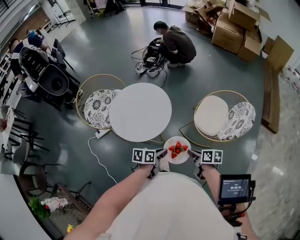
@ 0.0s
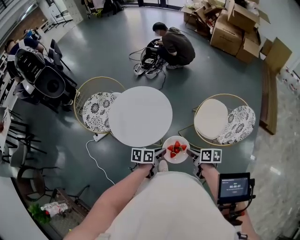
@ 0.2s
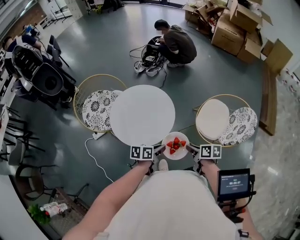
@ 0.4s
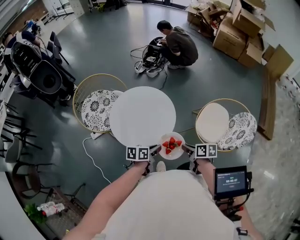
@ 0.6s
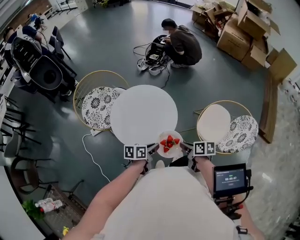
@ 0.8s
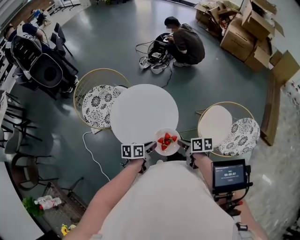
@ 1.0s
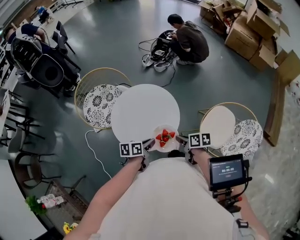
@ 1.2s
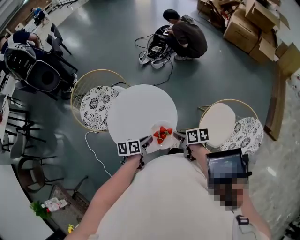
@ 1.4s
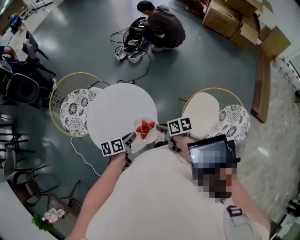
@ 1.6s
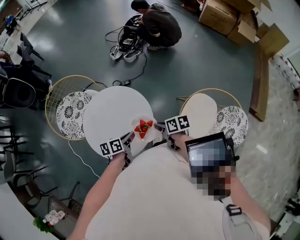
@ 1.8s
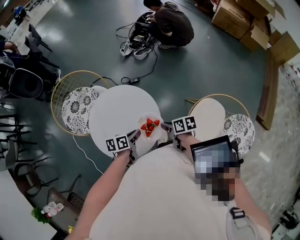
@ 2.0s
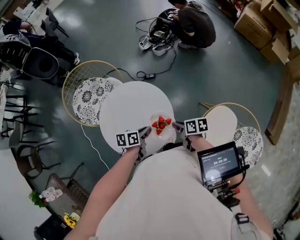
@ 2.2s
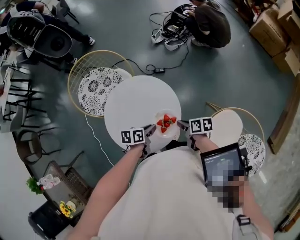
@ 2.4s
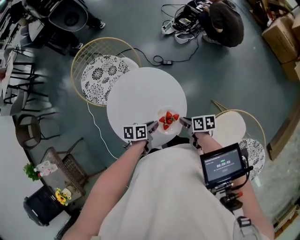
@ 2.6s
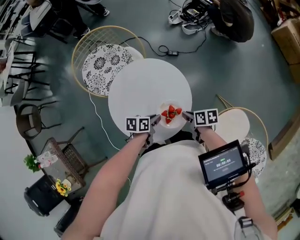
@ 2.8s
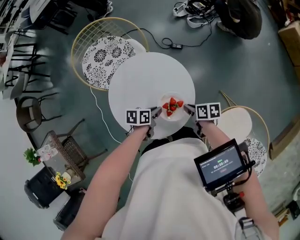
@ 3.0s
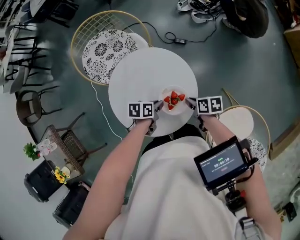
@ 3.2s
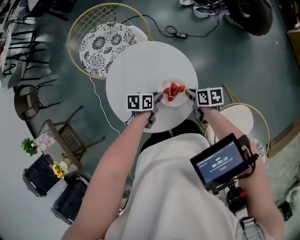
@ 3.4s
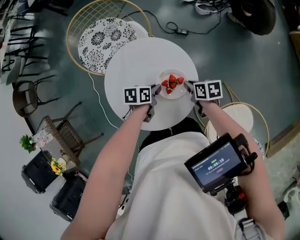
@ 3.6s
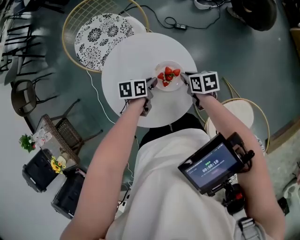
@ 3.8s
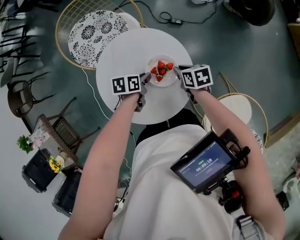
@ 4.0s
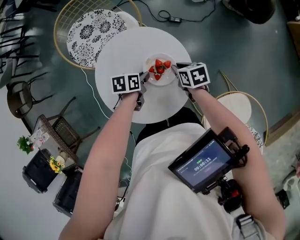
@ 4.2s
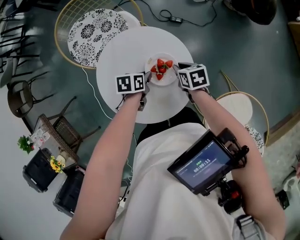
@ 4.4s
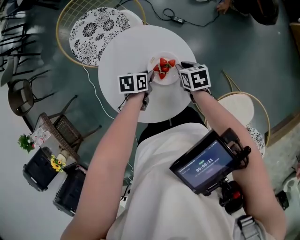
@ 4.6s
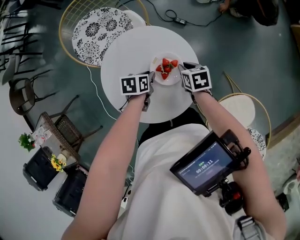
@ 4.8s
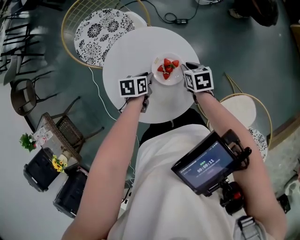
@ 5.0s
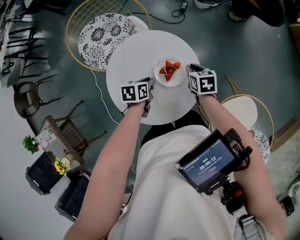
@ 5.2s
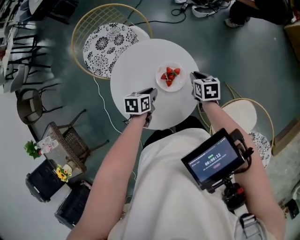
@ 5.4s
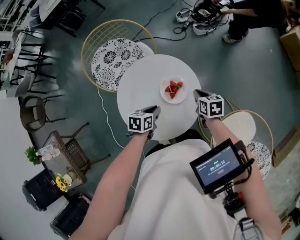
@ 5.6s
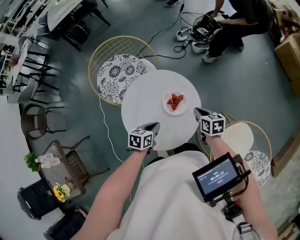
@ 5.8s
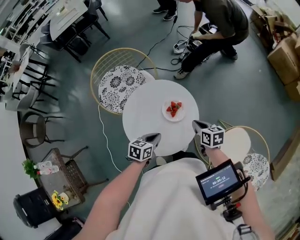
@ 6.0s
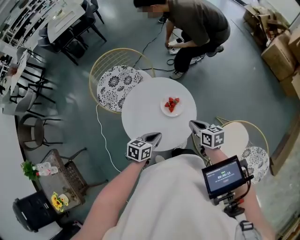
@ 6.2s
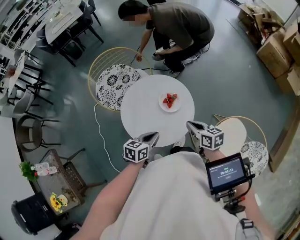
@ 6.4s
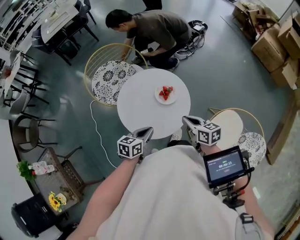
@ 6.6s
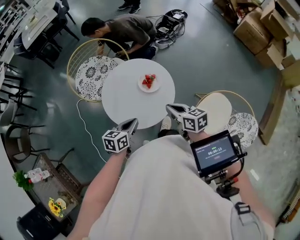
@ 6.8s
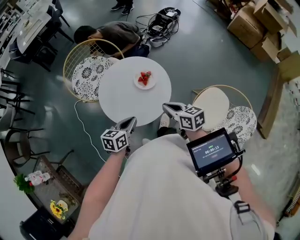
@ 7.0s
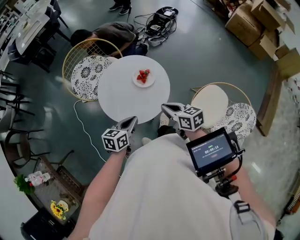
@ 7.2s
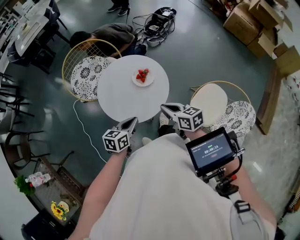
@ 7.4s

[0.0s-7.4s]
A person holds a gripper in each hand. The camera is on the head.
0.0s to 1.4s: Both grippers travel together forward and to the left, some 25 cm.
1.4s to 3.0s: The left gripper moves roughly 15 cm, while the right gripper ends up some 20 cm from where it was, and rotates approximately 30 degrees.
3.0s to 4.4s: The left gripper moves about 10 cm, while the right gripper moves about 10 cm, and changes its angle by approximately 30 degrees.
4.4s to 6.0s: The left gripper travels backward and upward by some 20 cm, and changes its angle by some 30 degrees. The right gripper heads upward and backward, covering approximately 20 cm, and swivels approximately 20 degrees.
6.0s to 7.4s: Both grippers travel together backward and upward, approximately 15 cm.

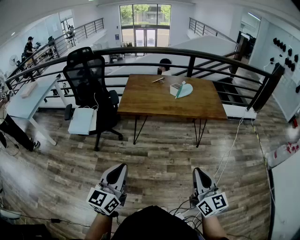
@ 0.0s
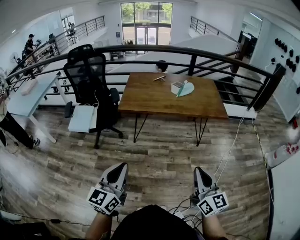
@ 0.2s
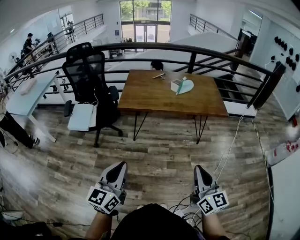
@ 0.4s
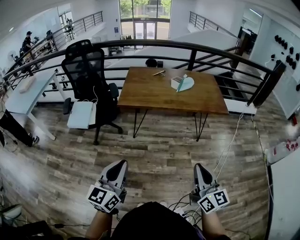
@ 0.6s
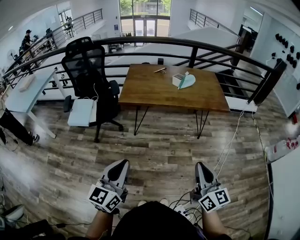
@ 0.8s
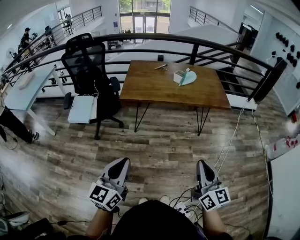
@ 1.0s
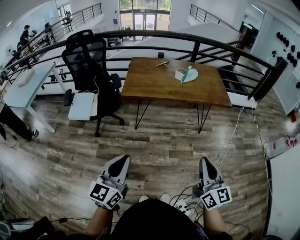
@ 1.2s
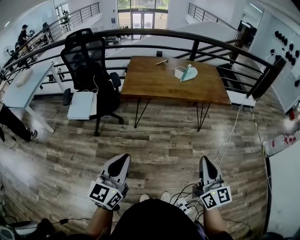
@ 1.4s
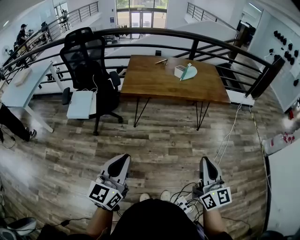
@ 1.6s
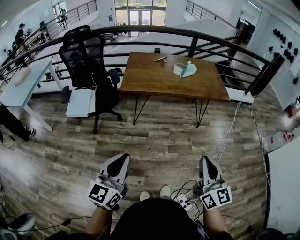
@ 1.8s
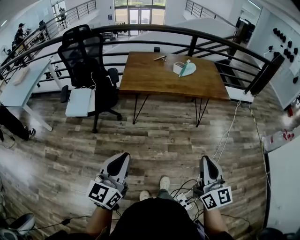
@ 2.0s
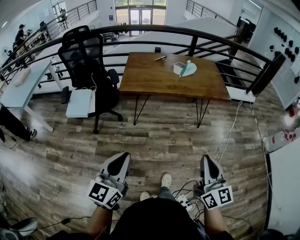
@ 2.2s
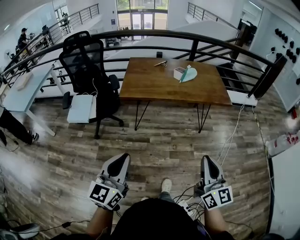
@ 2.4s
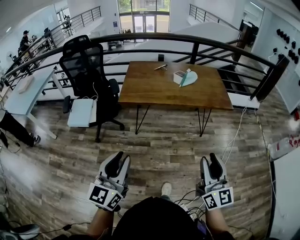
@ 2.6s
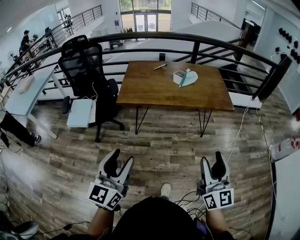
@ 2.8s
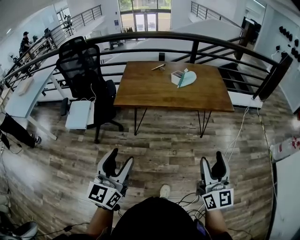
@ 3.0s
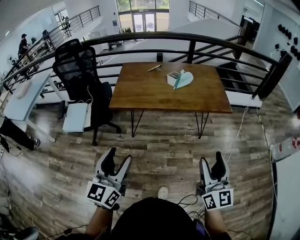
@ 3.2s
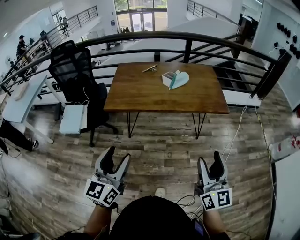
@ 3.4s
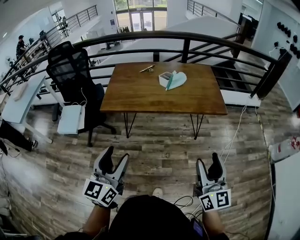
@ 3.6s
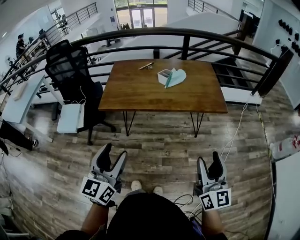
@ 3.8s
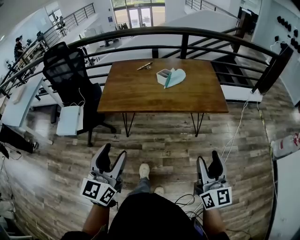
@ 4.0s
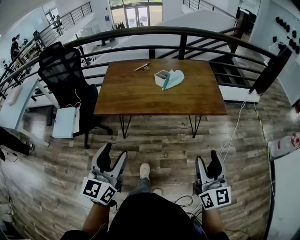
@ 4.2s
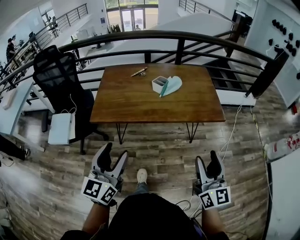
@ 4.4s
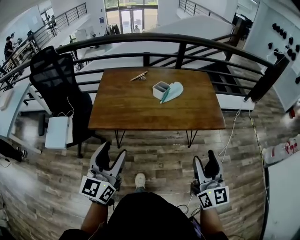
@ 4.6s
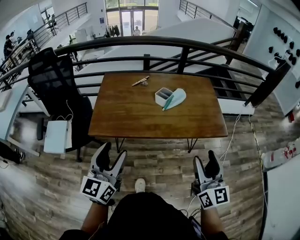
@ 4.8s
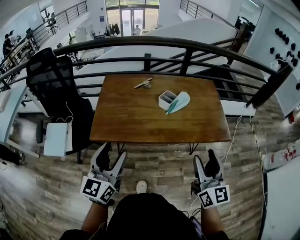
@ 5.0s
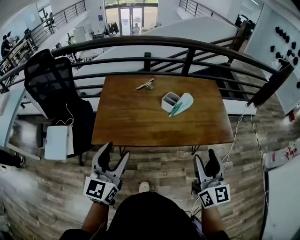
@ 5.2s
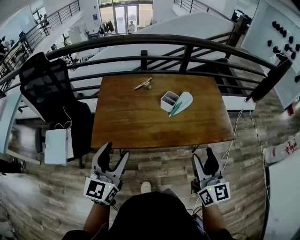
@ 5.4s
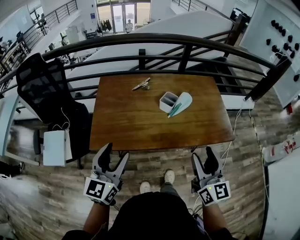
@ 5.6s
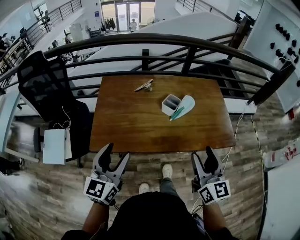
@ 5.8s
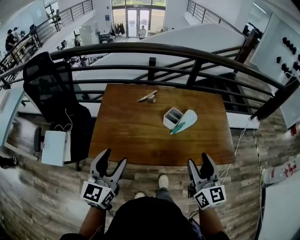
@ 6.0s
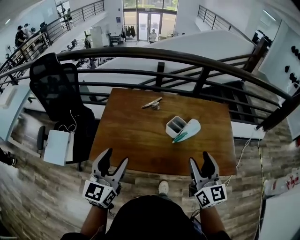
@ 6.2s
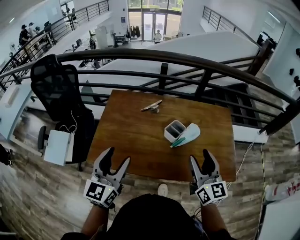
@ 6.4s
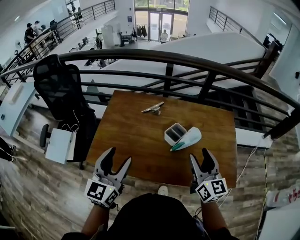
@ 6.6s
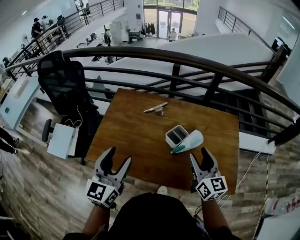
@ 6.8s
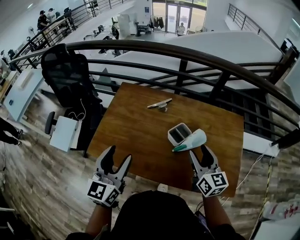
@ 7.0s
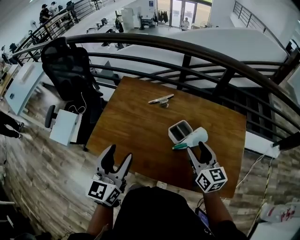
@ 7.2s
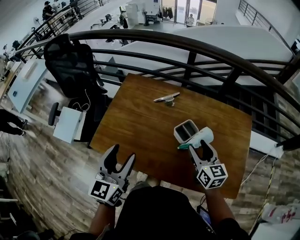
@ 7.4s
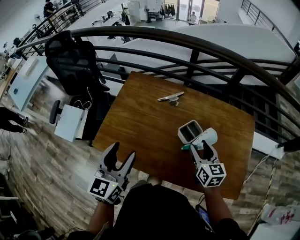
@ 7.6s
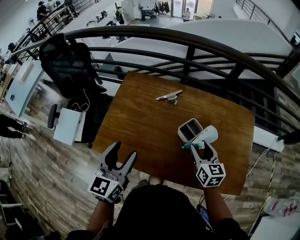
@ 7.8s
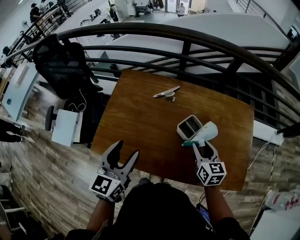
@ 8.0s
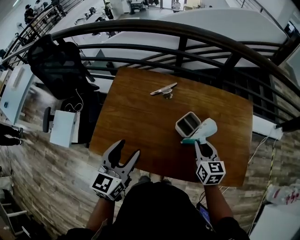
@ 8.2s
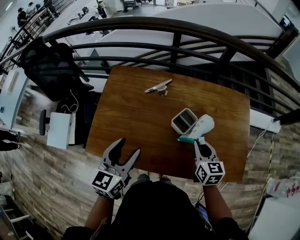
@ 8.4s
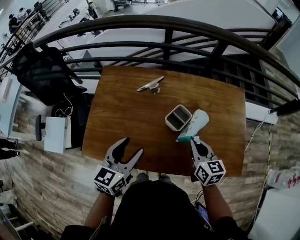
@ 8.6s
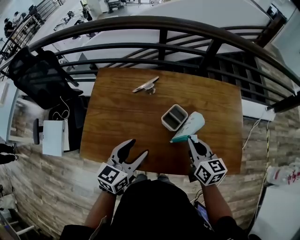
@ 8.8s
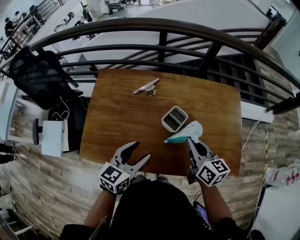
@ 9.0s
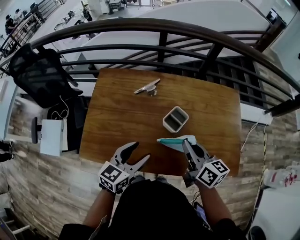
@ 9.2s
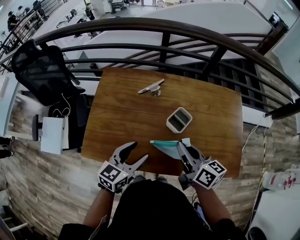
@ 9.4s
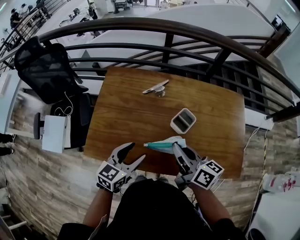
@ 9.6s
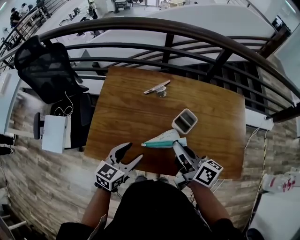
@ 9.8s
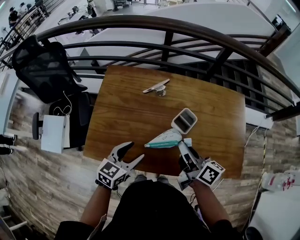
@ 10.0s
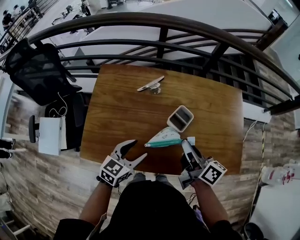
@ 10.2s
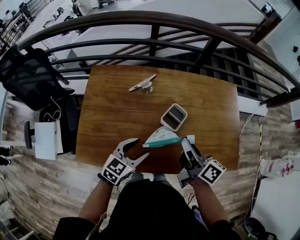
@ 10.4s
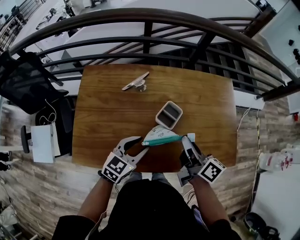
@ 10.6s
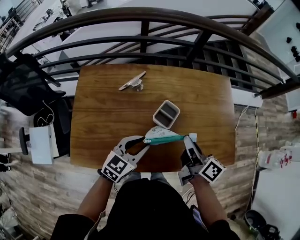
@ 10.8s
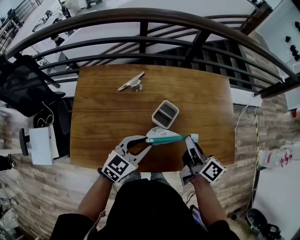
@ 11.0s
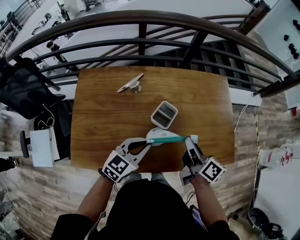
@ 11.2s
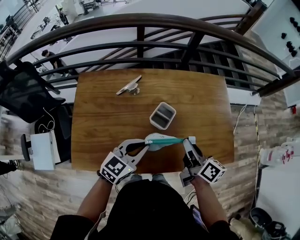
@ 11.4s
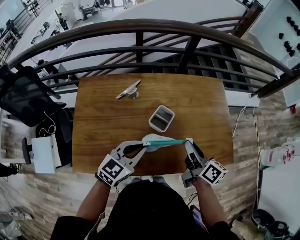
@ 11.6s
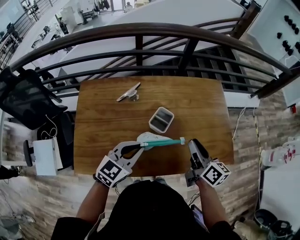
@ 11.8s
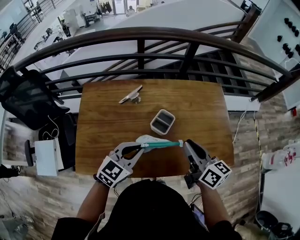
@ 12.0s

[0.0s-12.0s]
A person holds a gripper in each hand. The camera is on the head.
0.0s to 1.6s: Both grippers move to the left, approximately 5 cm.
1.6s to 3.0s: The grippers both shift forward and to the right by some 15 cm. The left gripper opens up. Meanwhile the right gripper opens up.
3.0s to 4.4s: The left gripper moves forward, approximately 20 cm, while the right gripper goes some 20 cm forward and to the right.
4.4s to 6.0s: The grippers both shift forward and to the left by approximately 30 cm.
6.0s to 7.6s: The left gripper shifts roughly 10 cm forward and to the right. Meanwhile the right gripper is displaced forward and downward by some 30 cm, and changes its angle by approximately 30 degrees.
7.6s to 9.0s: The left gripper moves to the right and downward, some 15 cm, and turns by some 40 degrees. The right gripper closes.
9.0s to 10.4s: The left gripper shifts approximately 5 cm downward, while the right gripper reaches roughly 10 cm to the left, then returns, and turns by roughly 30 degrees.
10.4s to 12.0s: The left gripper shifts roughly 10 cm upward, and closes its fingers. The right gripper is displaced to the right by roughly 5 cm, and swivels roughly 20 degrees.

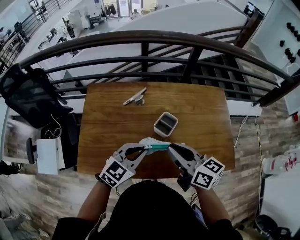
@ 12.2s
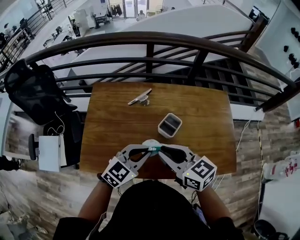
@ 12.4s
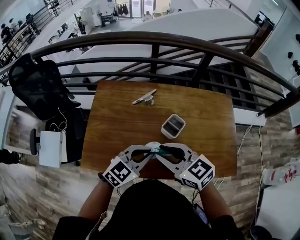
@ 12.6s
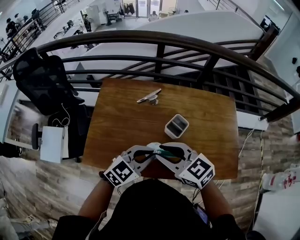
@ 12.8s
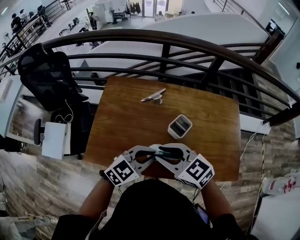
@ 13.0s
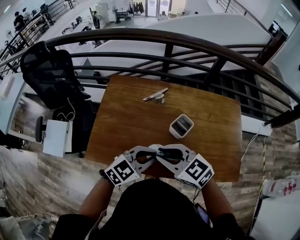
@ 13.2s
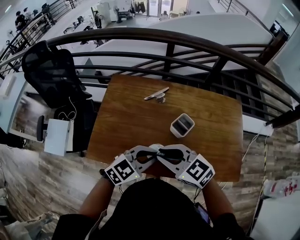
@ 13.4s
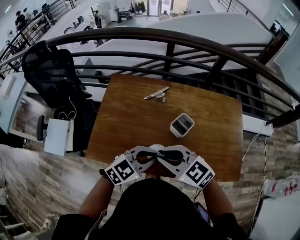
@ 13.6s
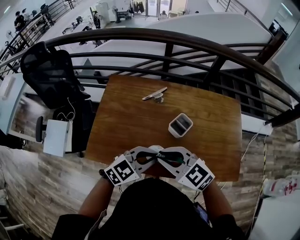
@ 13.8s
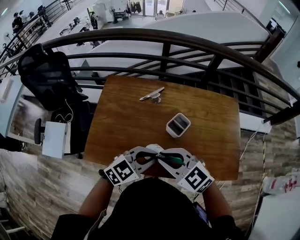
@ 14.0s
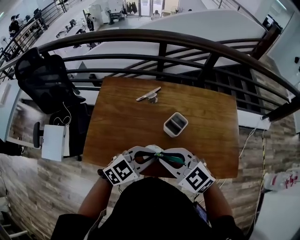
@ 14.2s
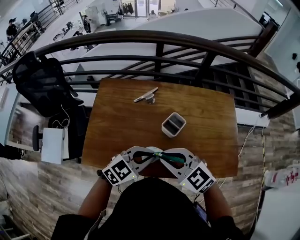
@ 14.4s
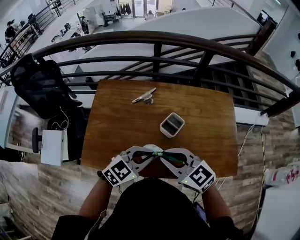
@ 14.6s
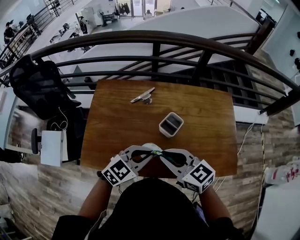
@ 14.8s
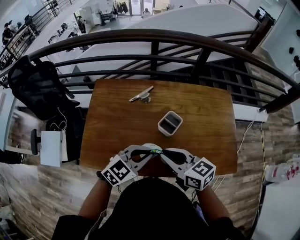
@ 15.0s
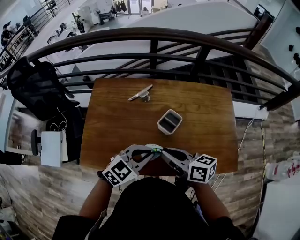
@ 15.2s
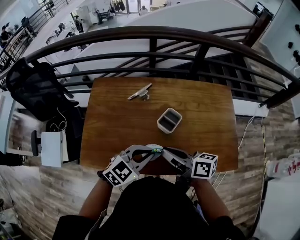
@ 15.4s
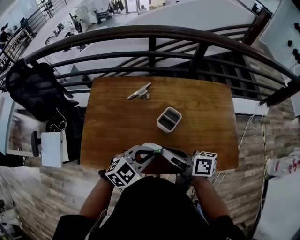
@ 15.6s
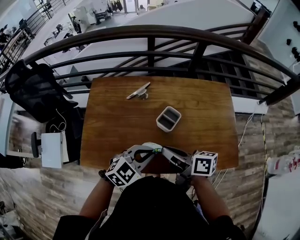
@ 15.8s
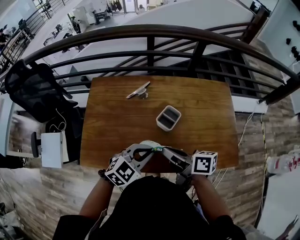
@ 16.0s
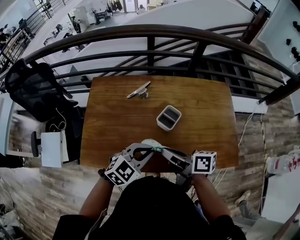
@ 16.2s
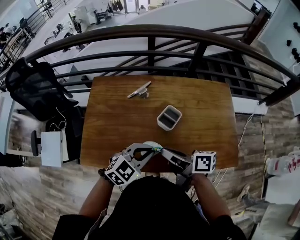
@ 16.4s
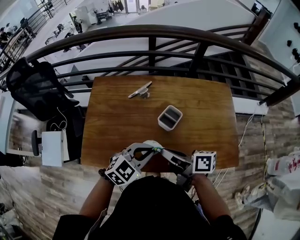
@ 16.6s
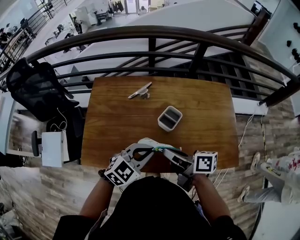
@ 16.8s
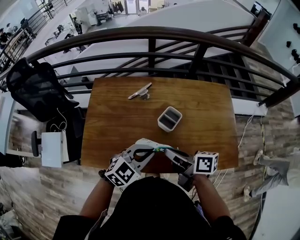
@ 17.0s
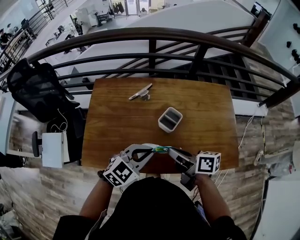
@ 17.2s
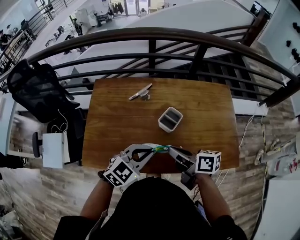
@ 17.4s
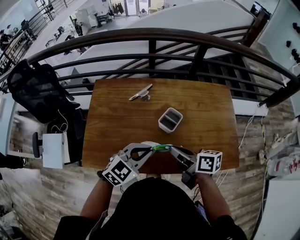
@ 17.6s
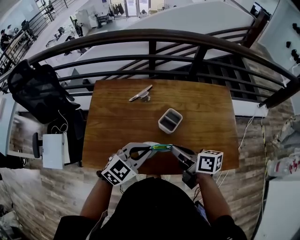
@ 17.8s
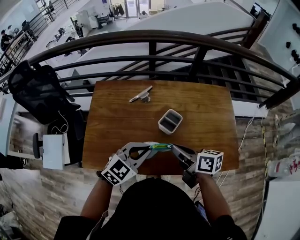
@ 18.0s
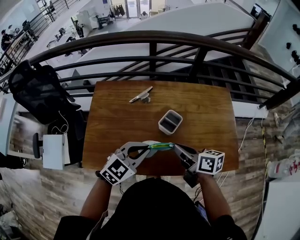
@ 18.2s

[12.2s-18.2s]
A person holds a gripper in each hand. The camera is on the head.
12.2s to 13.8s: The right gripper ends up some 10 cm from where it was, and rolls counterclockwise, seen from behind, by roughly 40 degrees.
13.8s to 15.2s: The right gripper moves some 10 cm, and twists approximately 50 degrees clockwise, seen from behind.
15.2s to 16.6s: The right gripper changes its angle by some 20 degrees.
16.6s to 18.2s: The right gripper moves to the right, some 5 cm, and turns by about 20 degrees.
